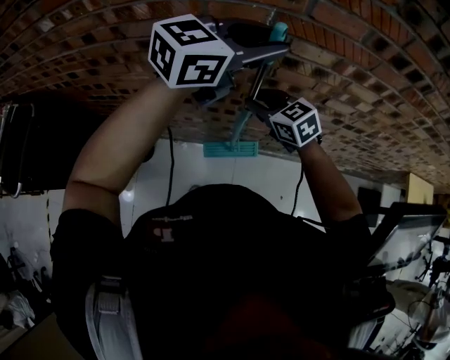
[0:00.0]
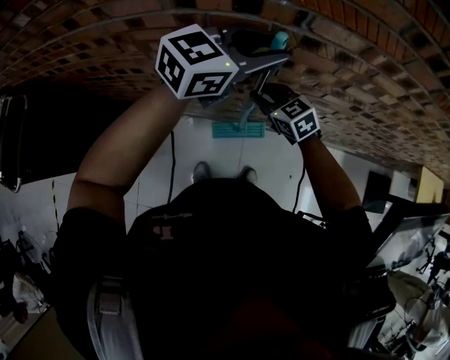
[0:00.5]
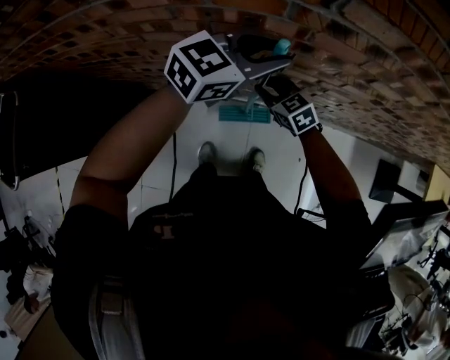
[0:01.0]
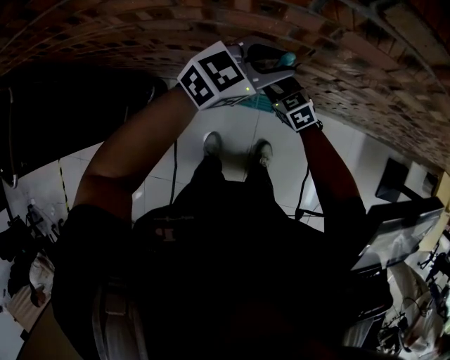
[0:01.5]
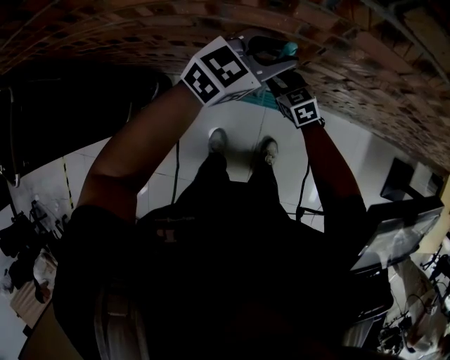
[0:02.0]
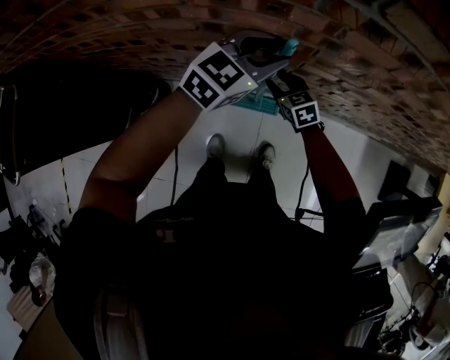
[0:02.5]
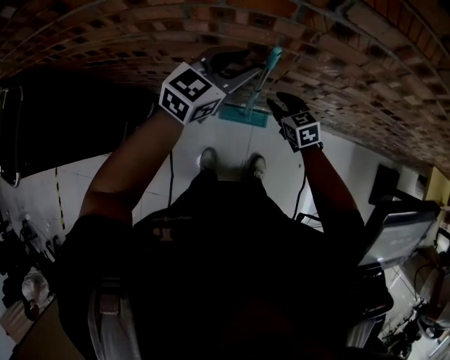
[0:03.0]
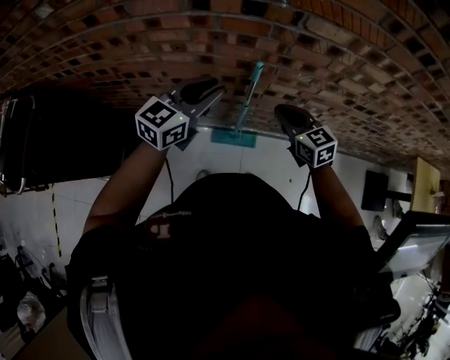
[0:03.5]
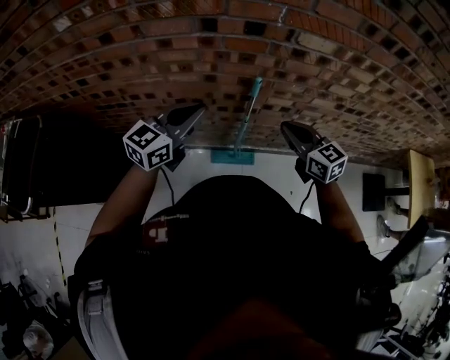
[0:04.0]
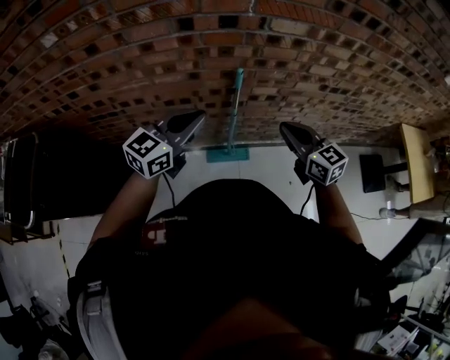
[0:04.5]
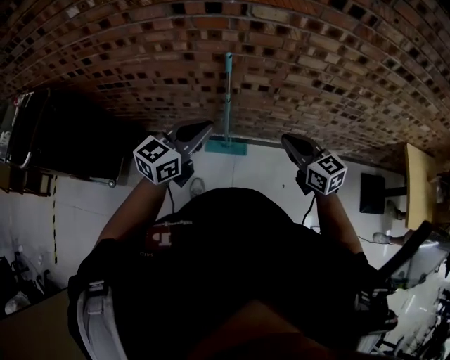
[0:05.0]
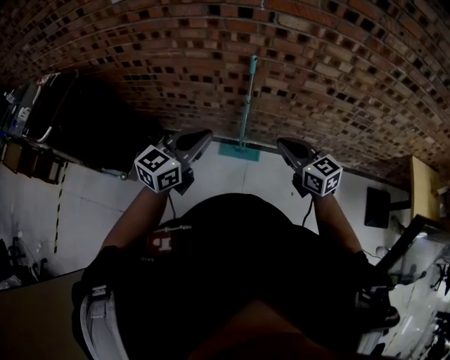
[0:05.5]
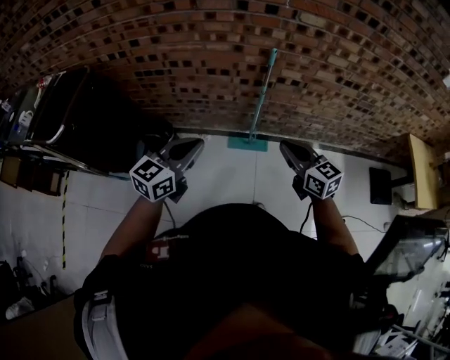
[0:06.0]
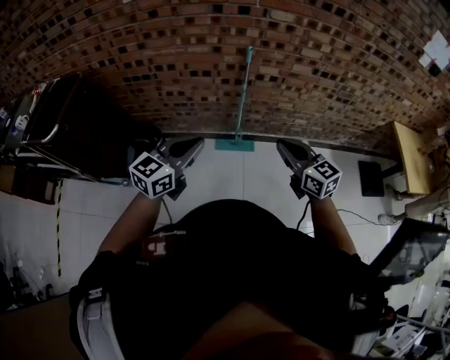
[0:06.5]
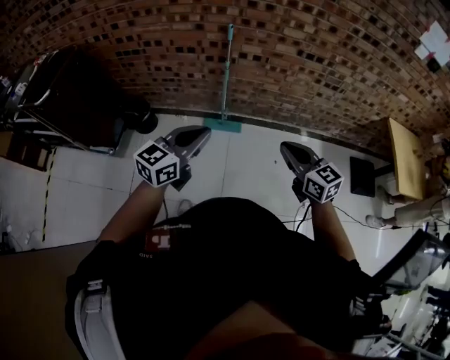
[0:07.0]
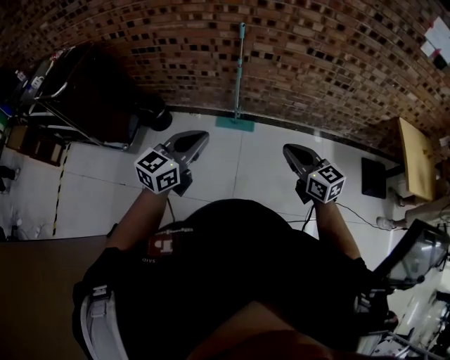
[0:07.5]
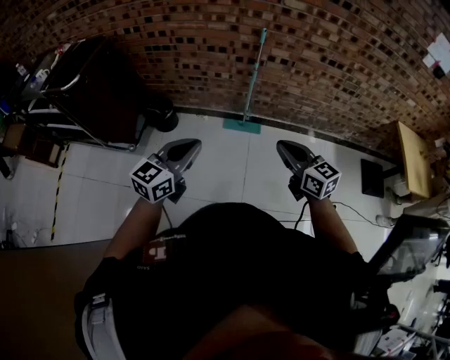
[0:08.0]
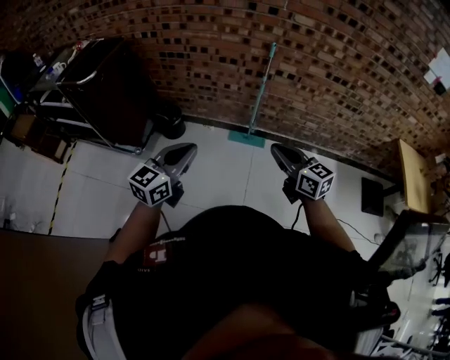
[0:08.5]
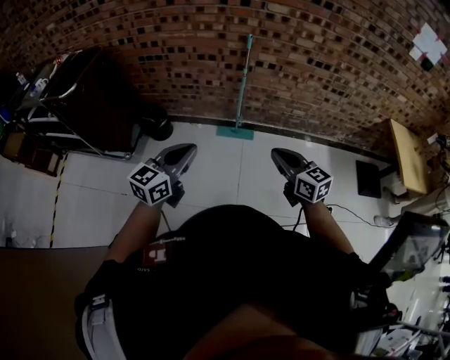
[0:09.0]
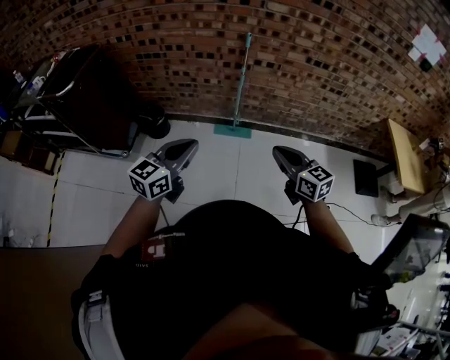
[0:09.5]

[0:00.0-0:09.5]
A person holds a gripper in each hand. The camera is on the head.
0:00.0 to 0:02.0: The two grippers go roughly 30 cm downward.
0:02.0 to 0:04.0: The left gripper moves to the left, backward and upward, roughly 25 cm, and closes, while the right gripper moves upward and backward, approximately 35 cm, turns by some 20 degrees, and closes up.
0:04.0 to 0:05.5: The two grippers go about 25 cm backward.
0:05.5 to 0:07.5: Both grippers move backward, approximately 30 cm.
0:07.5 to 0:09.5: Both grippers travel together to the left, about 10 cm.

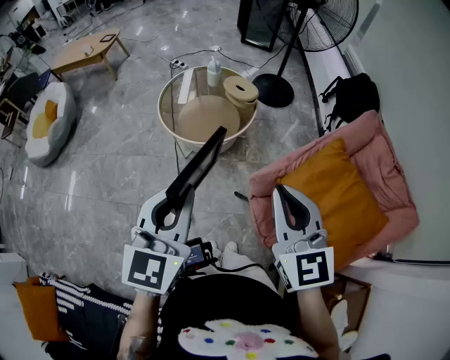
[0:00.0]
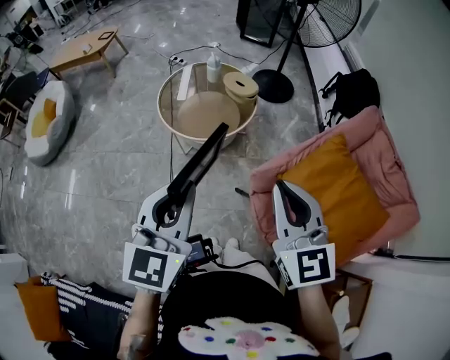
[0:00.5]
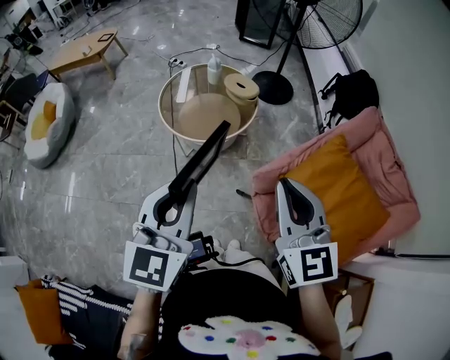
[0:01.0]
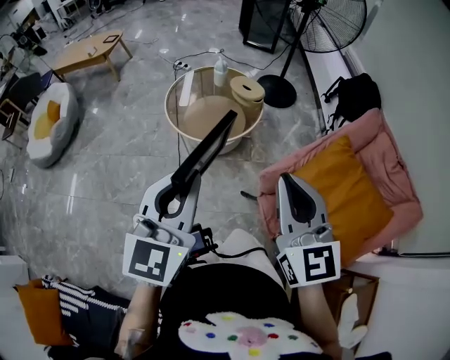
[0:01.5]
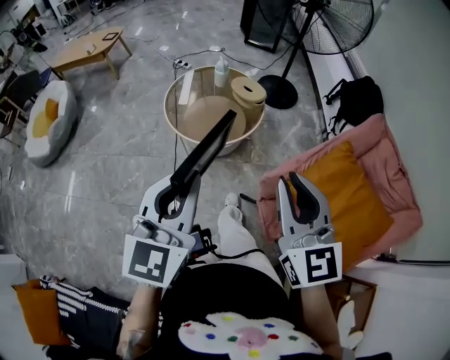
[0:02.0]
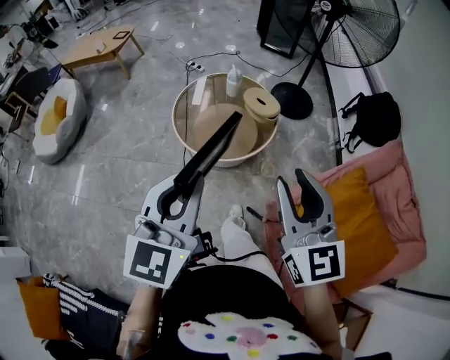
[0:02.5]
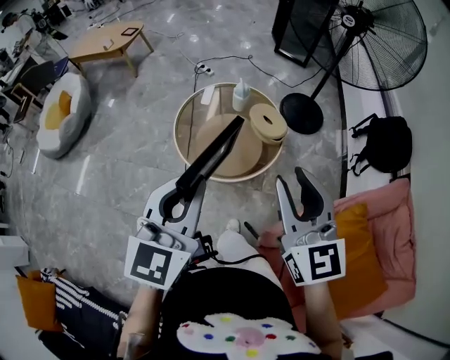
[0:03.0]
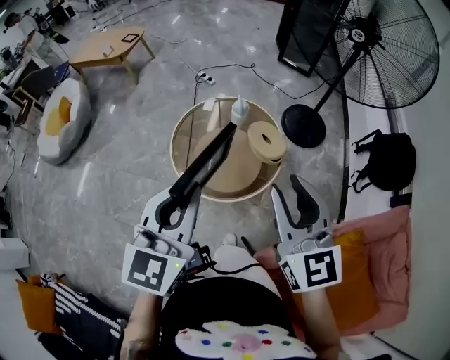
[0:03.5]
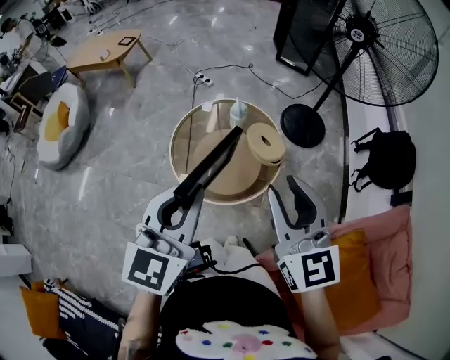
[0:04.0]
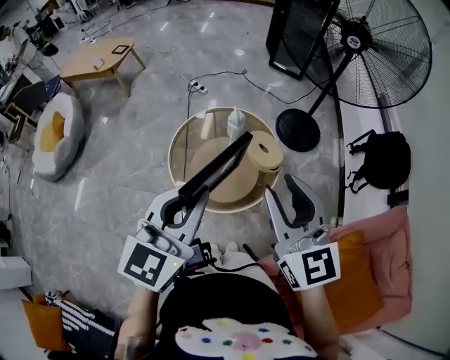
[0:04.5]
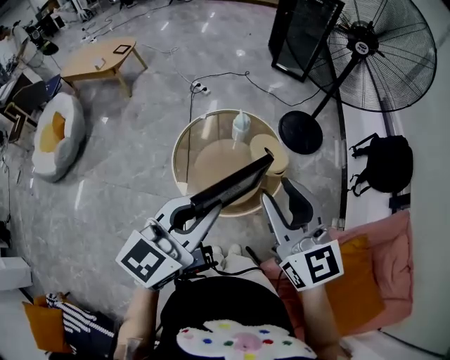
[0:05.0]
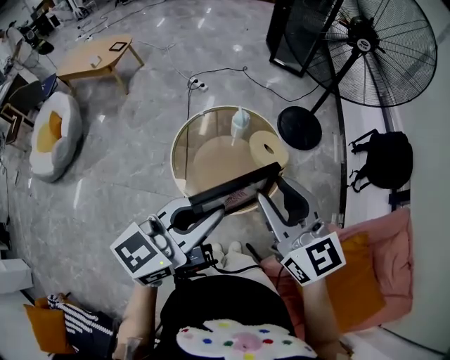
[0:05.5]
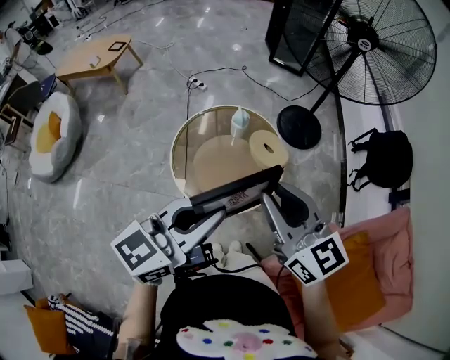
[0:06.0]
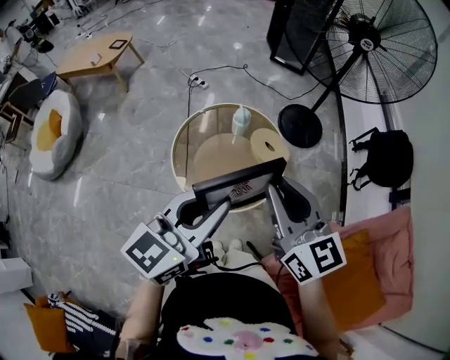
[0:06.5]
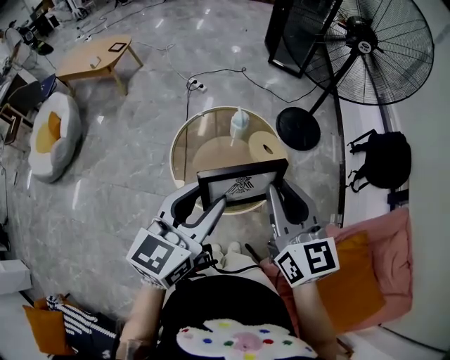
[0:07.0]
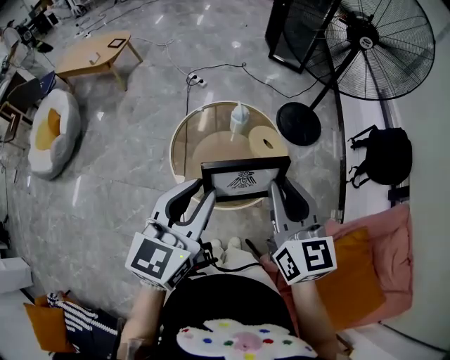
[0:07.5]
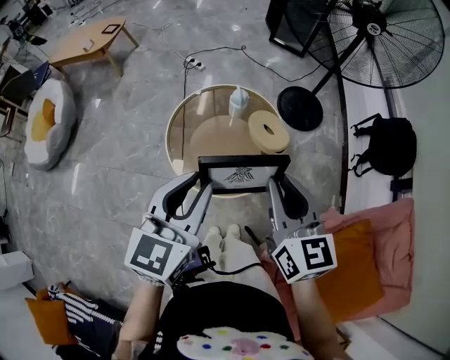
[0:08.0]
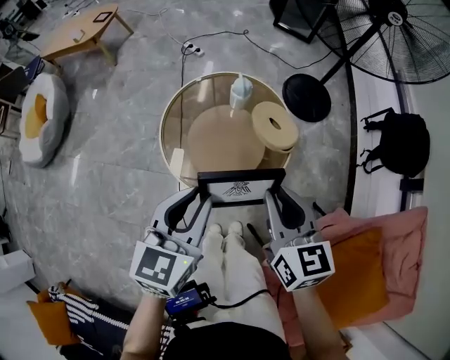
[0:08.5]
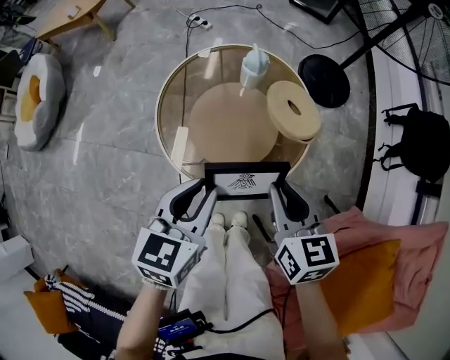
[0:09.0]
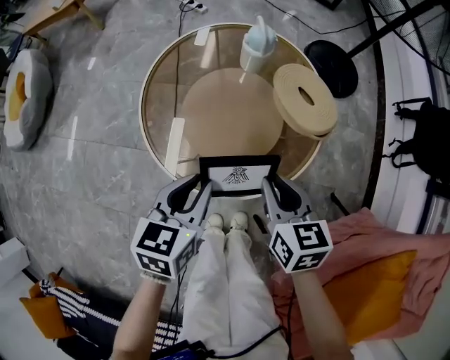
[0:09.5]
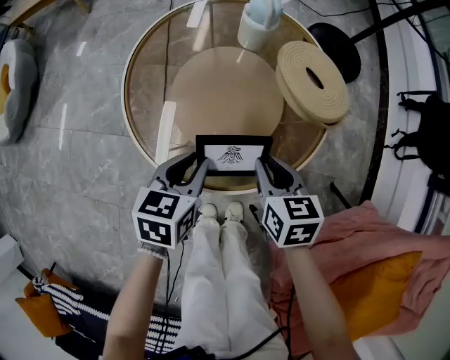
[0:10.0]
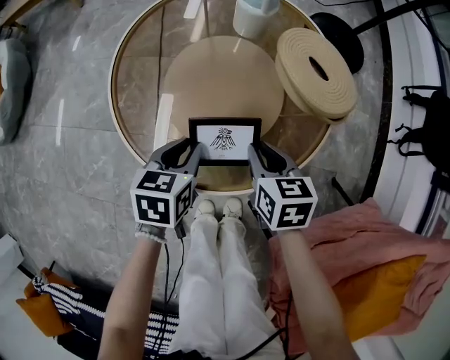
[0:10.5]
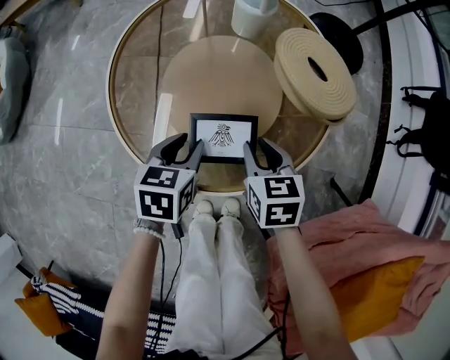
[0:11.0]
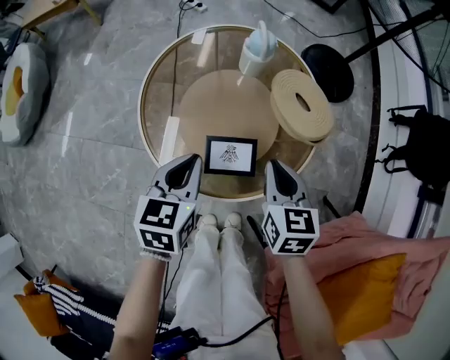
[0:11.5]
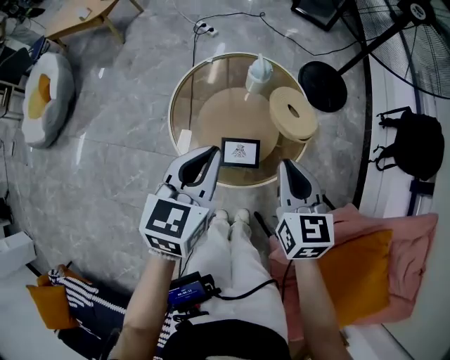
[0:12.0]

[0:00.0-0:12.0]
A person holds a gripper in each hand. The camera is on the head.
0:00.0 to 0:02.0: There are only small adjustments of the grippers.
0:02.0 to 0:04.0: The two grippers go about 30 cm forward. The right gripper opens up.
0:04.0 to 0:06.0: The right gripper is displaced to the left by some 5 cm; the left gripper changes its angle by roughly 40 degrees.
0:06.0 to 0:08.0: The left gripper changes place by about 5 cm, and rotates about 30 degrees.
0:08.0 to 0:10.0: Both grippers move downward, roughly 40 cm. The right gripper tips its fingers downward by some 30 degrees. Meanwhile the left gripper changes its angle by some 30 degrees.
0:10.0 to 0:12.0: Both grippers travel together upward, roughly 30 cm. The right gripper changes its angle by roughly 20 degrees. Meanwhile the left gripper rotates about 20 degrees.

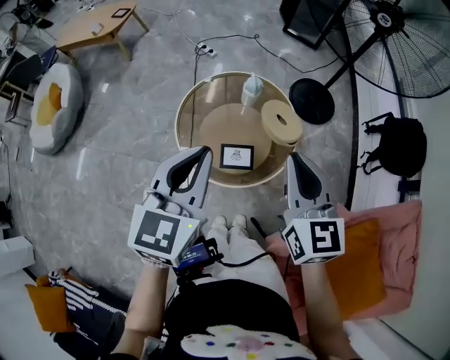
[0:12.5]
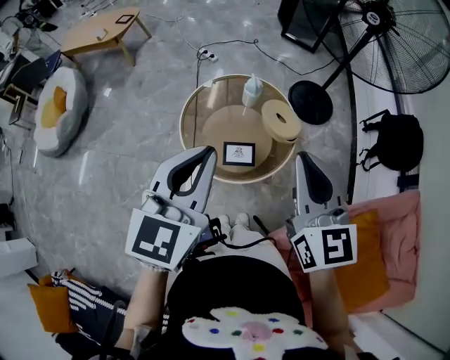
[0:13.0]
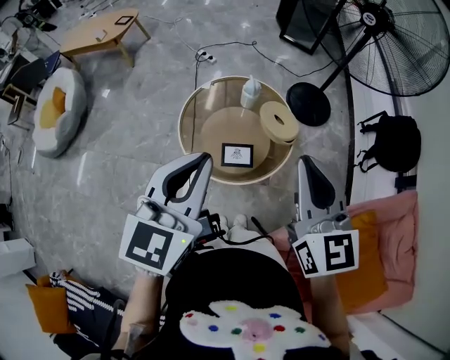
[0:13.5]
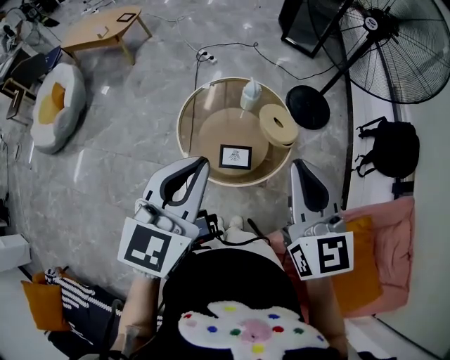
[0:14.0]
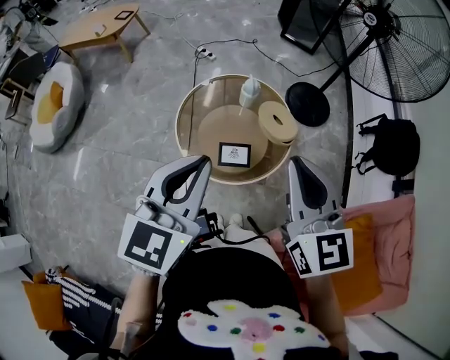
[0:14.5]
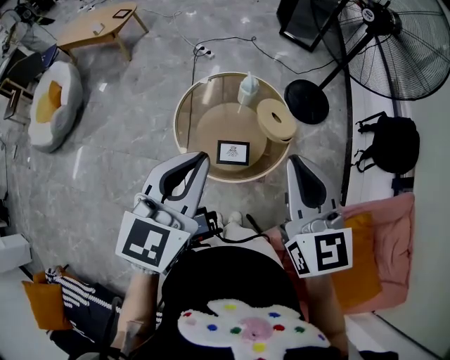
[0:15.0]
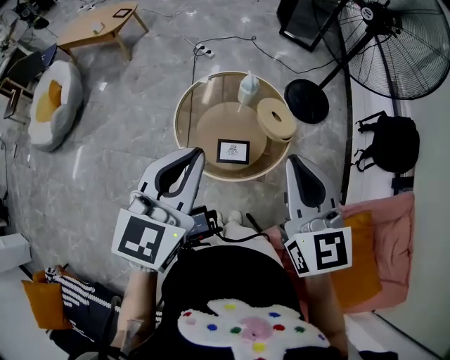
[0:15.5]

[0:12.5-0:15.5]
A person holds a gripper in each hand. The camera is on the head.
0:12.5 to 0:14.0: The right gripper is displaced upward by roughly 5 cm, while the left gripper is displaced backward and upward by approximately 5 cm.
0:14.0 to 0:15.5: The two grippers keep their place.

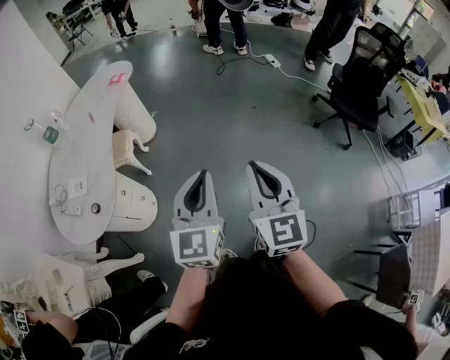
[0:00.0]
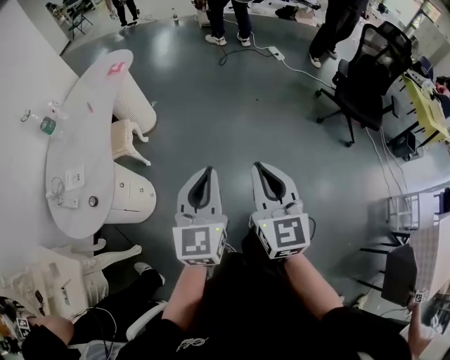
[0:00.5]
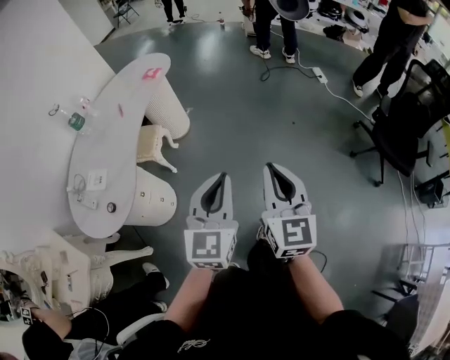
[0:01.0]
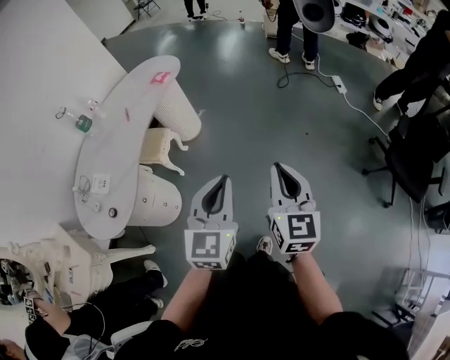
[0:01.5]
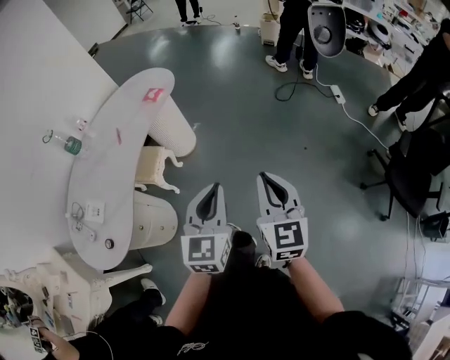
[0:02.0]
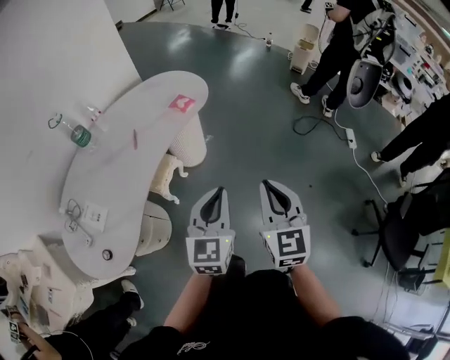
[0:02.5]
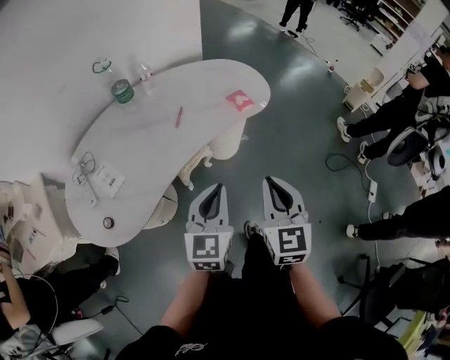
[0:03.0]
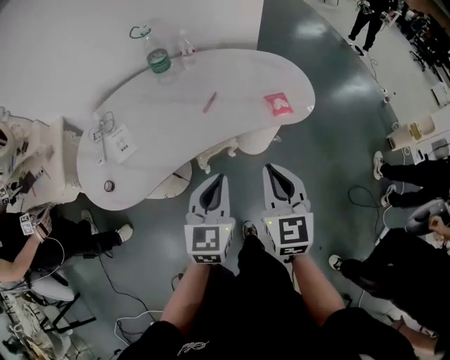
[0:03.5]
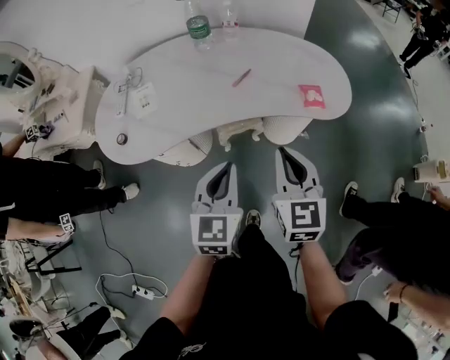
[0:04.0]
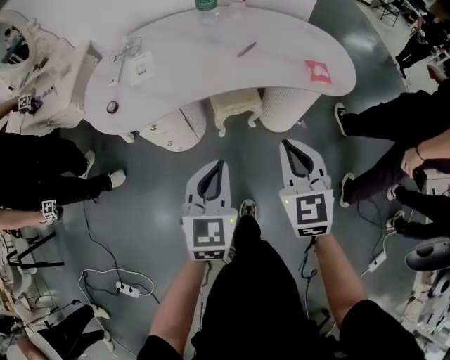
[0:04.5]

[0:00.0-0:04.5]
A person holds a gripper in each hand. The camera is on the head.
0:00.0 to 0:02.0: The two grippers go roughly 35 cm forward.
0:02.0 to 0:04.5: The right gripper shifts by roughly 35 cm, and changes its angle by some 70 degrees; the left gripper moves roughly 25 cm, and changes its angle by approximately 60 degrees.
